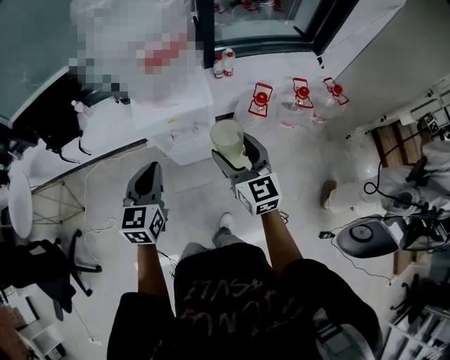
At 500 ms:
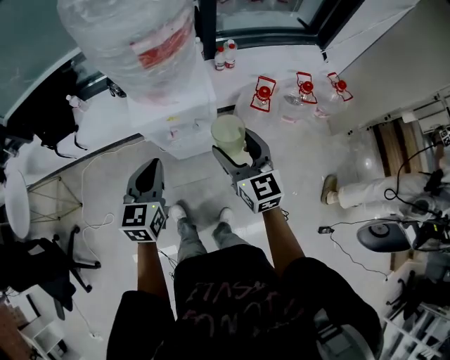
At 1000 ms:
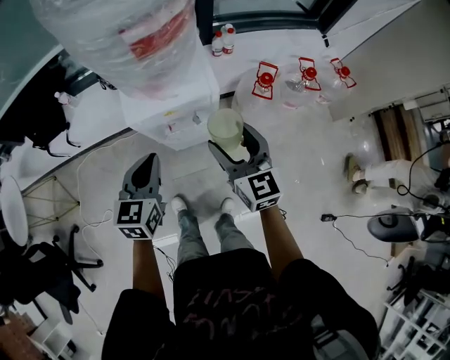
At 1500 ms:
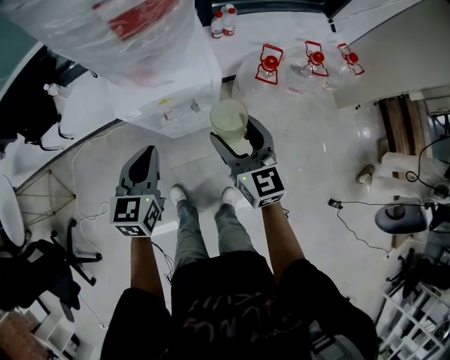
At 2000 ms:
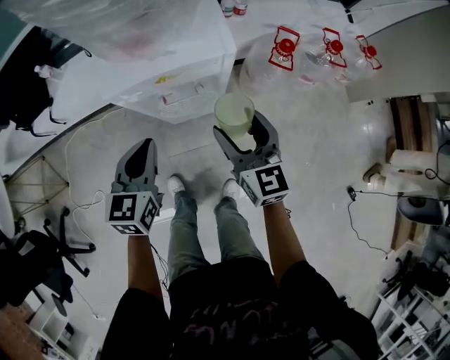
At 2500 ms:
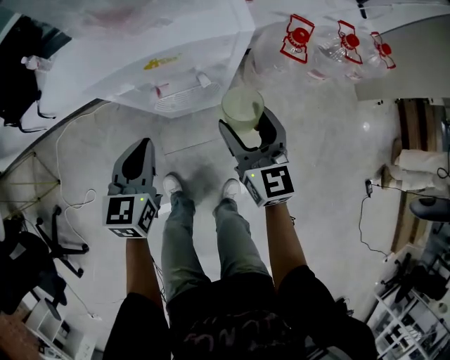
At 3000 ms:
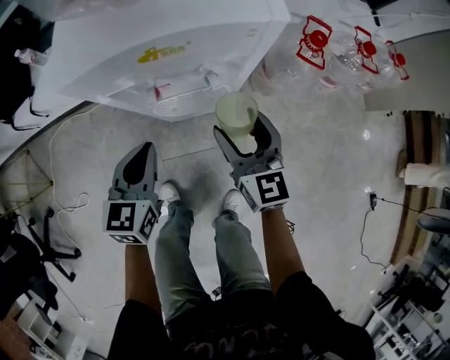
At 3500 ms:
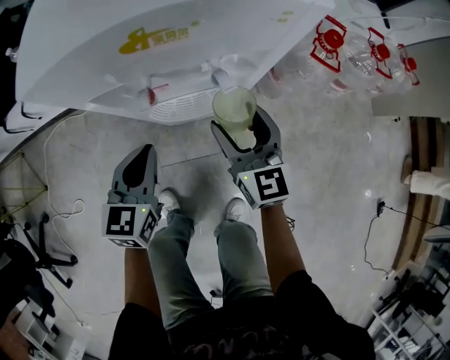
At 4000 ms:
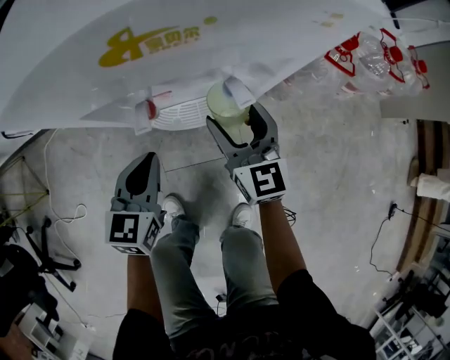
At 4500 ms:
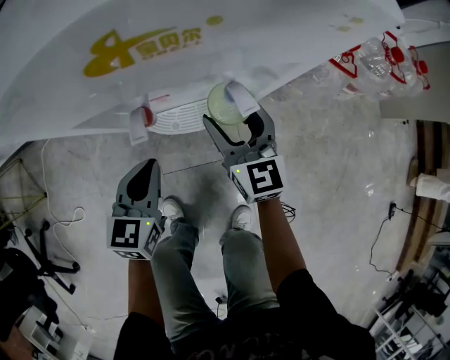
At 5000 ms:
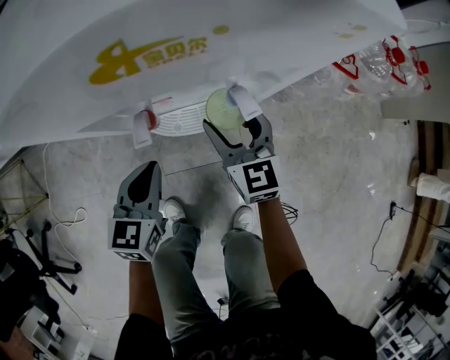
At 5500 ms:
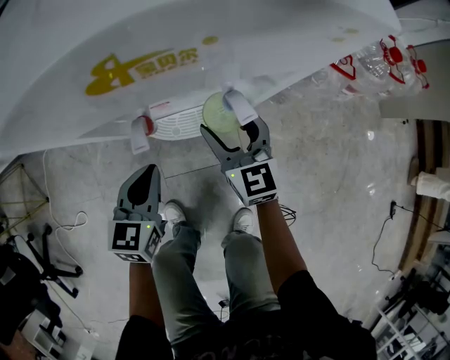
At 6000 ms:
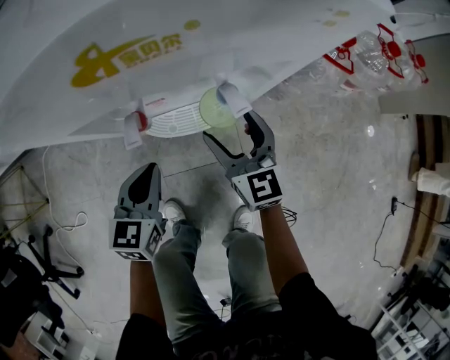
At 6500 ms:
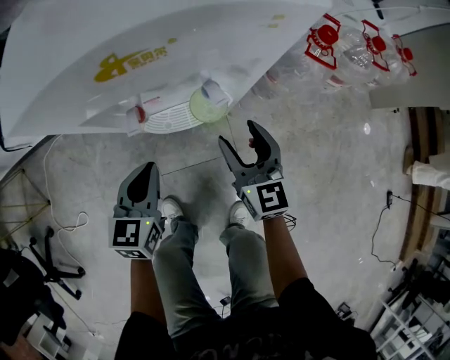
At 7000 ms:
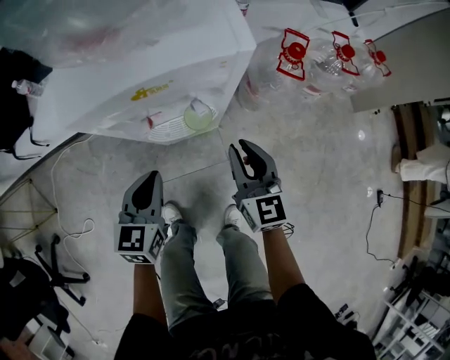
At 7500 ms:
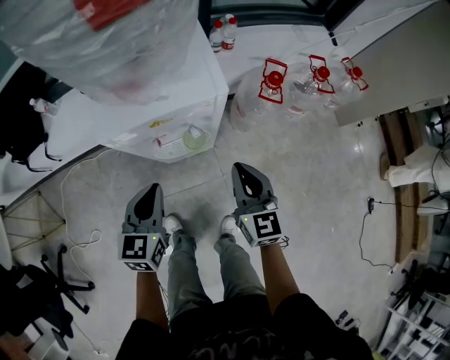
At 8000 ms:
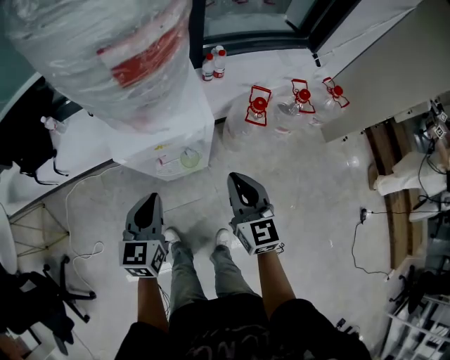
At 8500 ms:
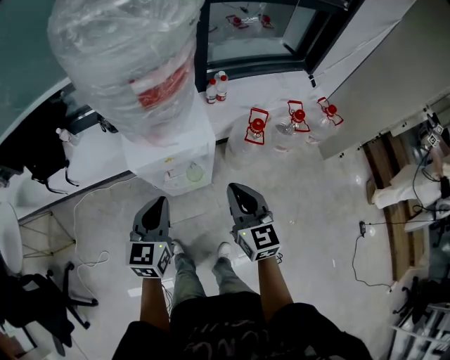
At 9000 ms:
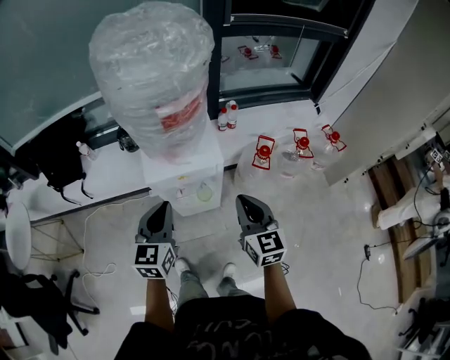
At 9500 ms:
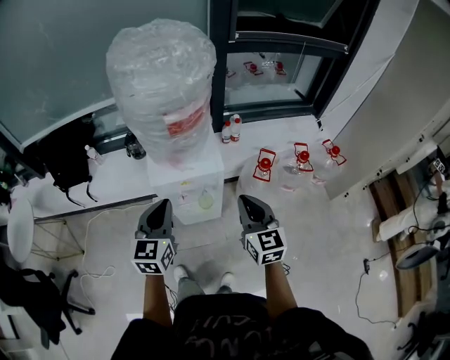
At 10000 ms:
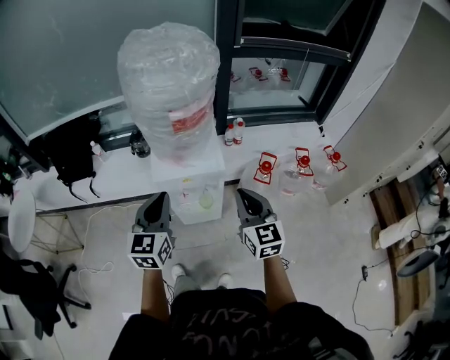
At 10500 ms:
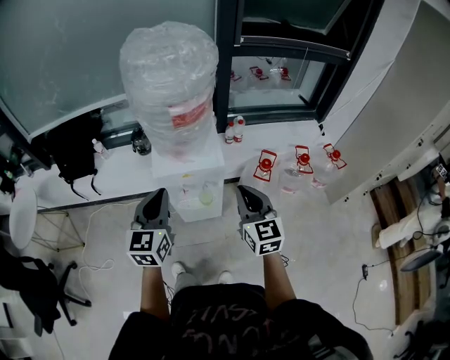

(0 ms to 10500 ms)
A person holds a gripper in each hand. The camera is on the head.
0 ms - 2000 ms: Both grippers travel together downward, roughly 20 cm.
2000 ms - 4000 ms: Both grippers travel together downward, approximately 25 cm.
4000 ms - 6500 ms: The right gripper changes place by about 5 cm.
6500 ms - 8500 ms: The two grippers go roughly 40 cm upward. The right gripper closes its fingers.
8500 ms - 10500 ms: Both grippers travel together upward, roughly 10 cm.

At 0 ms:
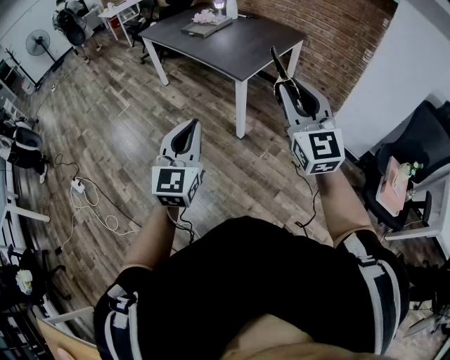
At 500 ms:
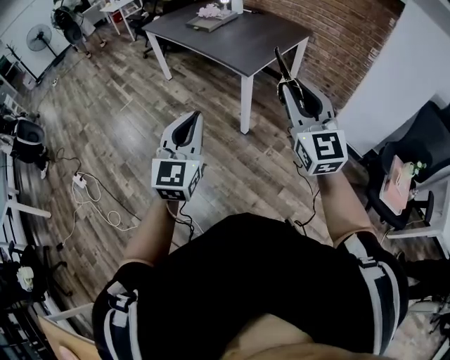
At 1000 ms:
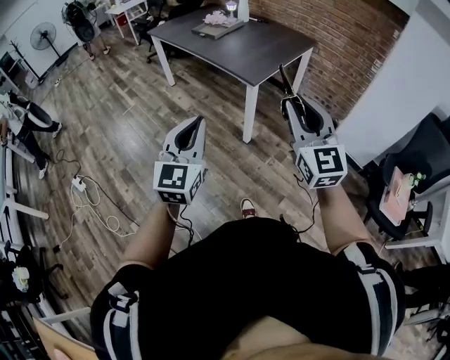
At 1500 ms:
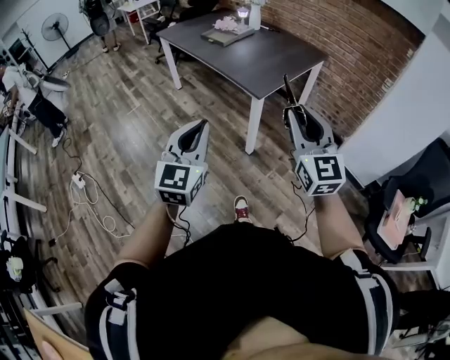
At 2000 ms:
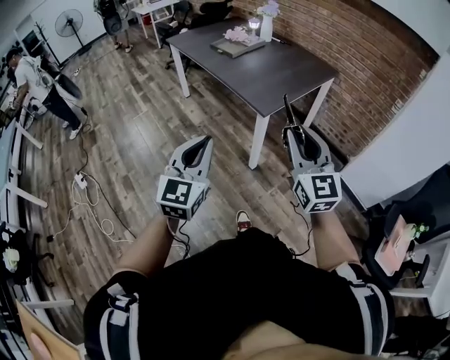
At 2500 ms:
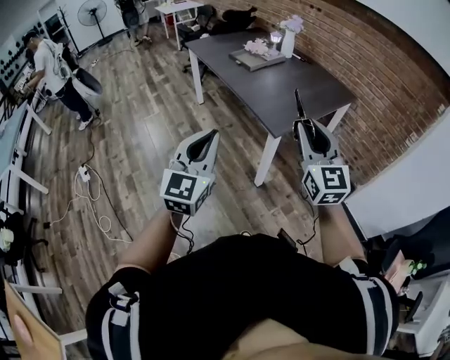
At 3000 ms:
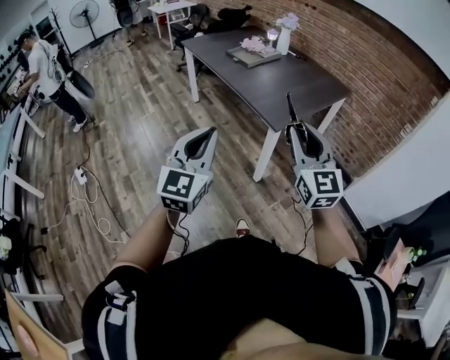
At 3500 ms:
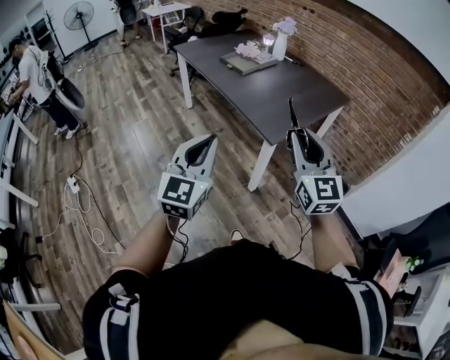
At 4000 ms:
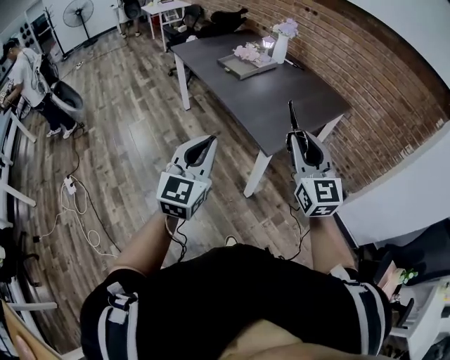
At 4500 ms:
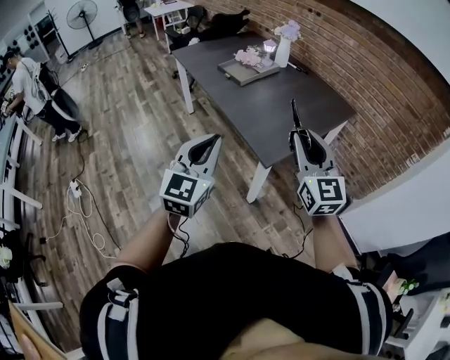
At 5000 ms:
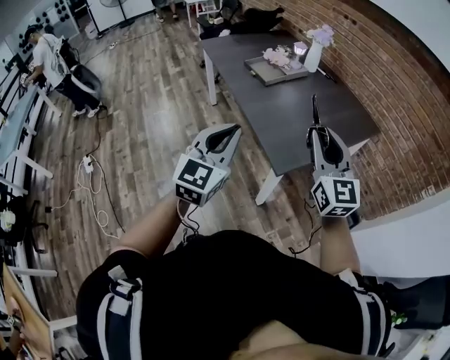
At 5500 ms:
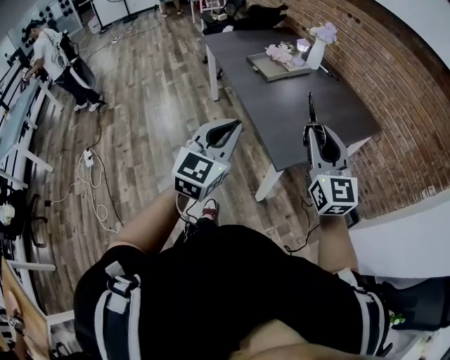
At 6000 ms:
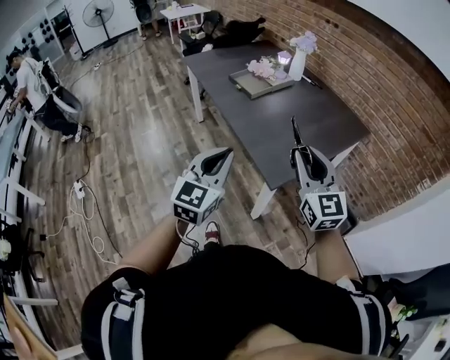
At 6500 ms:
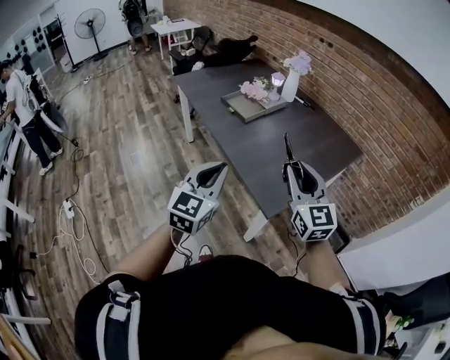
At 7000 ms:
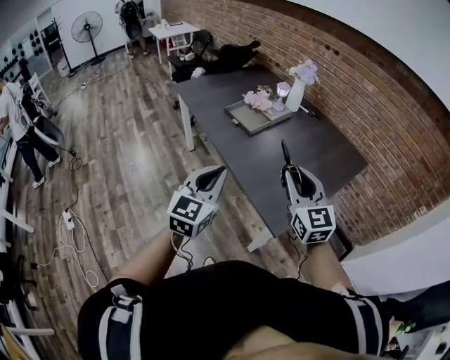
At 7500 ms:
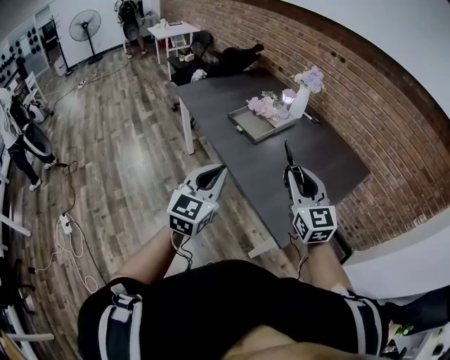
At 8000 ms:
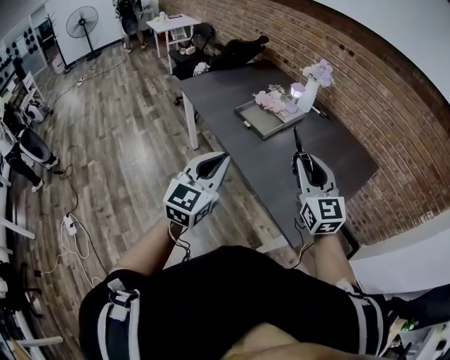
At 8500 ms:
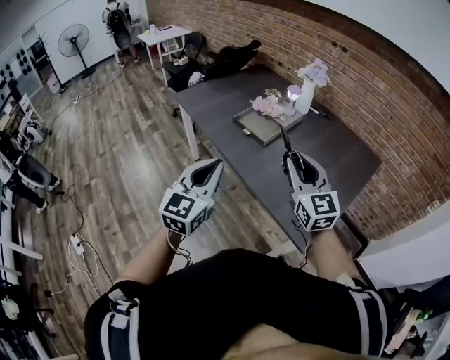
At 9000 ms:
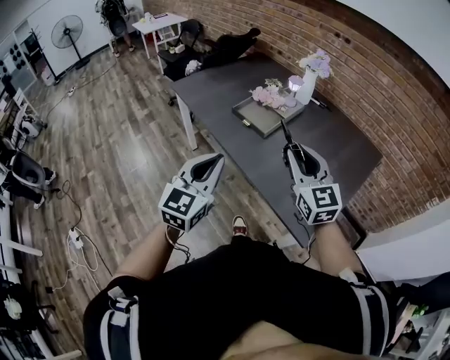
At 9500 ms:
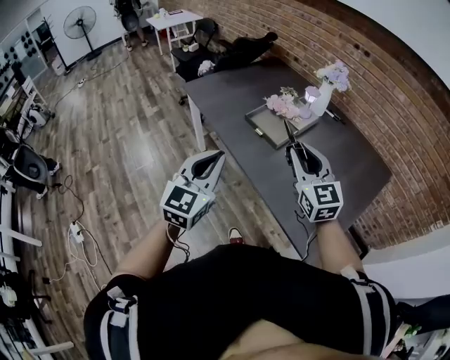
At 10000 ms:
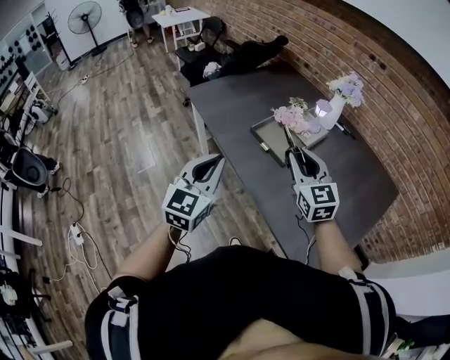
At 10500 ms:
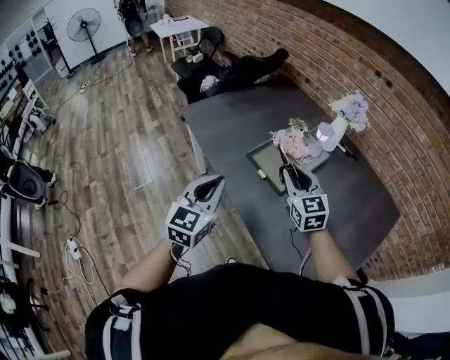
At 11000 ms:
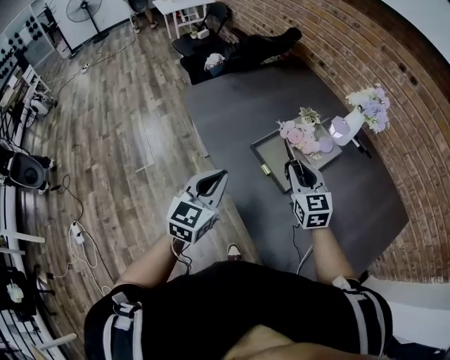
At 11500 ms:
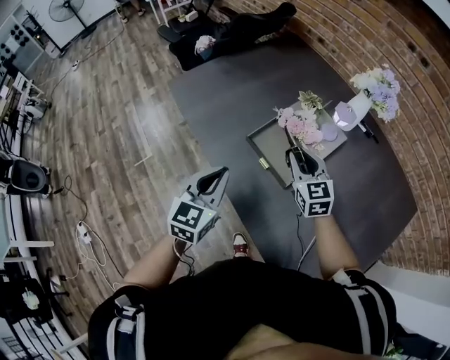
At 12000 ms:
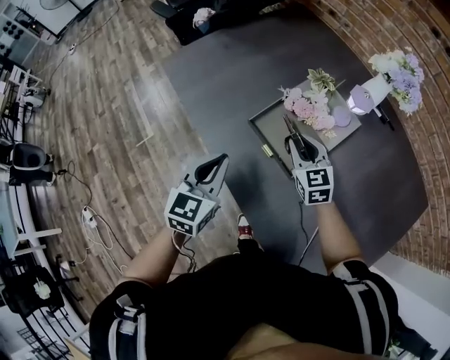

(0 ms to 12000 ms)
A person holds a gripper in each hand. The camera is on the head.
0 ms - 2000 ms: The left gripper moves forward, some 15 cm. Meanwhile the right gripper goes roughly 15 cm forward and downward.
2000 ms - 4000 ms: The left gripper travels forward by about 20 cm; the right gripper swings forward and backward, roughly 20 cm each way, with 2 reversals.
4000 ms - 6000 ms: The two grippers go about 10 cm forward.
6000 ms - 8000 ms: The grippers both shift forward and to the left by approximately 25 cm.
8000 ms - 10000 ms: Both grippers move forward and to the left, roughly 20 cm.
10000 ms - 12000 ms: The grippers both shift forward and downward by roughly 30 cm.

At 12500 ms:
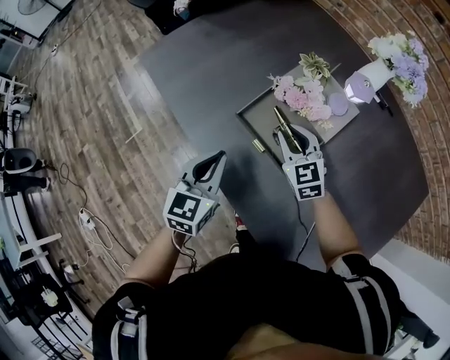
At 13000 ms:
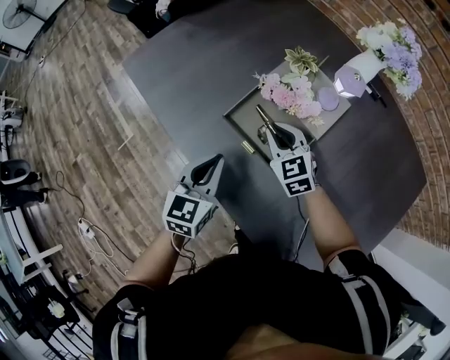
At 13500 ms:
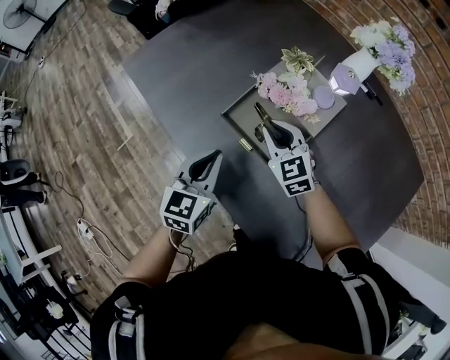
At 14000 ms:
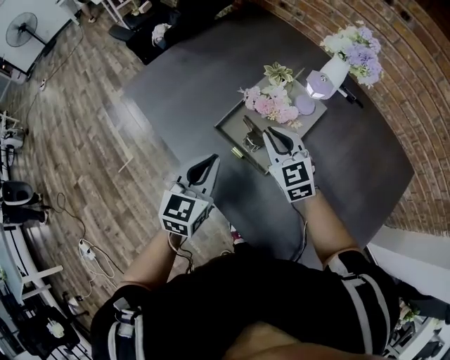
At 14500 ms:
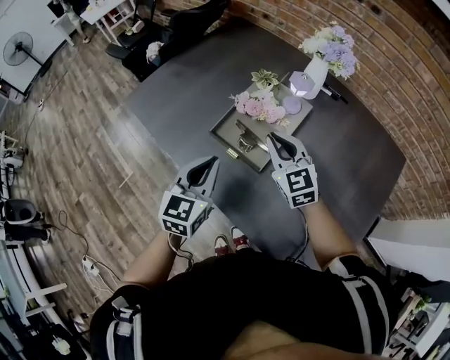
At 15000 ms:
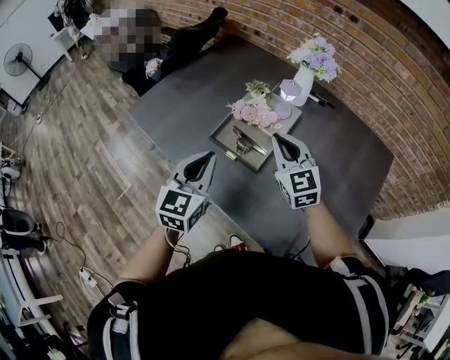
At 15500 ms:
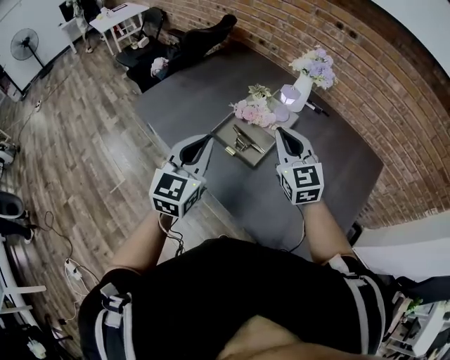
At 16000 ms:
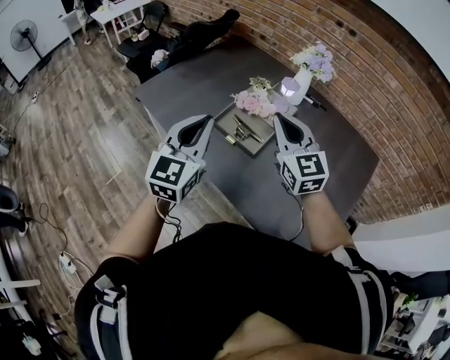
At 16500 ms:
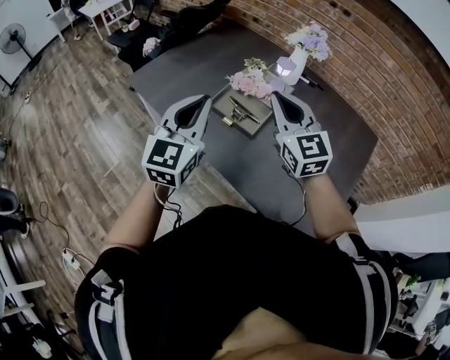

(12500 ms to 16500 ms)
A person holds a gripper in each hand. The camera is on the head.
12500 ms - 14500 ms: The left gripper heads upward, covering some 10 cm, while the right gripper heads upward and backward, covering about 15 cm.
14500 ms - 16500 ms: Both grippers move upward and backward, roughly 20 cm. The left gripper changes its angle by approximately 20 degrees.
